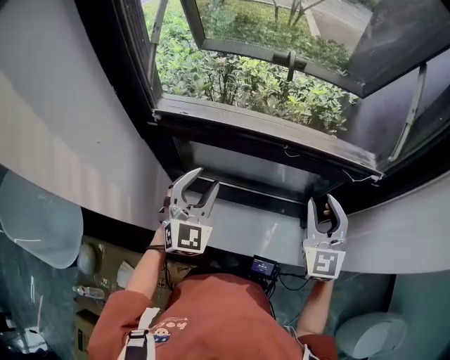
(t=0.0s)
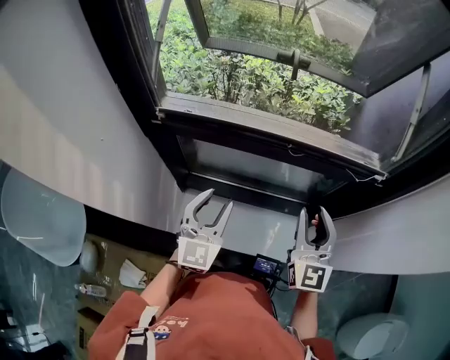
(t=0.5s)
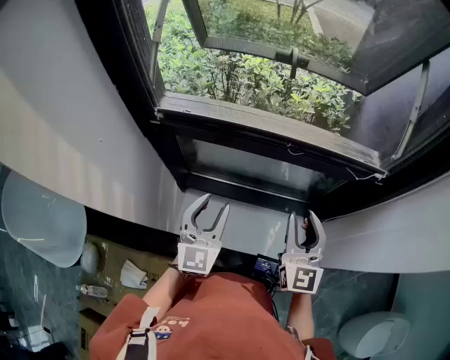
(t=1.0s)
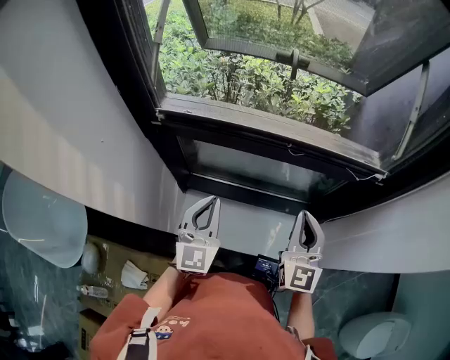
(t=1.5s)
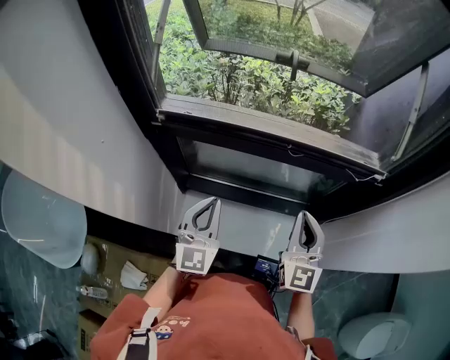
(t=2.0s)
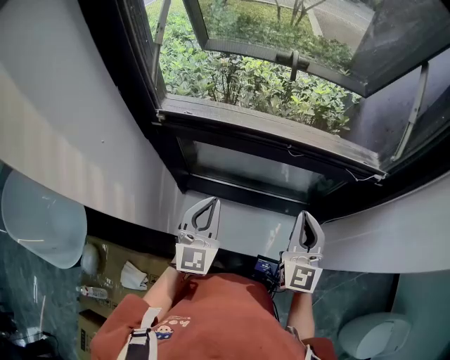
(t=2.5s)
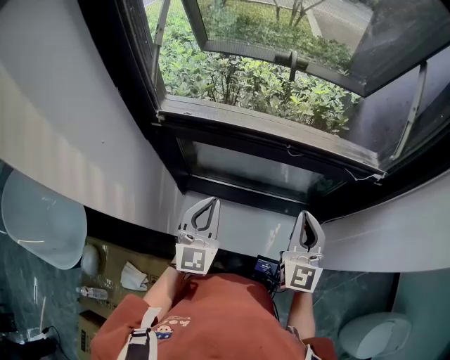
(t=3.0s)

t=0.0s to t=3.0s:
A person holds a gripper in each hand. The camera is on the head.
t=0.0s to t=1.5s: The right gripper ends up some 5 cm from where it was, and closes up. Meanwhile the left gripper changes place by about 5 cm, turns by roughly 20 degrees, and closes up.
t=1.5s to t=3.0s: Both grippers stay about where they are.

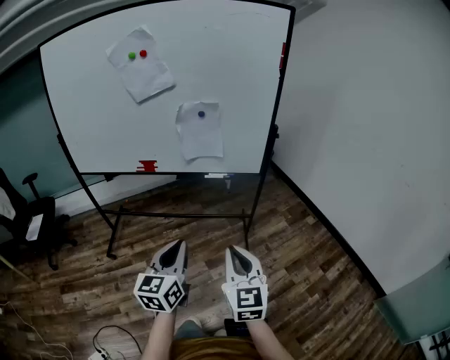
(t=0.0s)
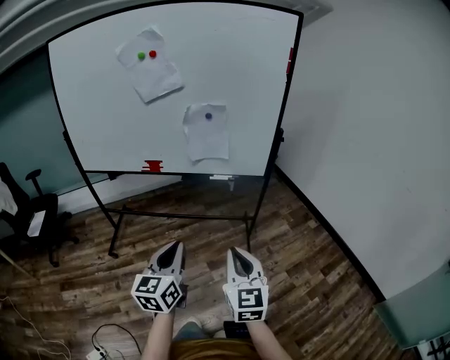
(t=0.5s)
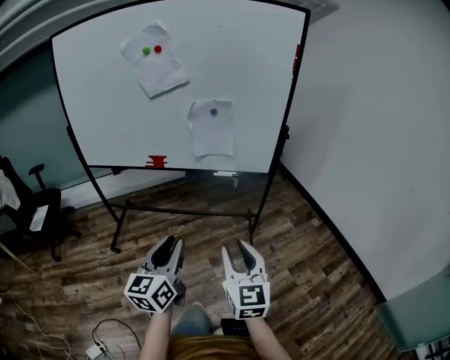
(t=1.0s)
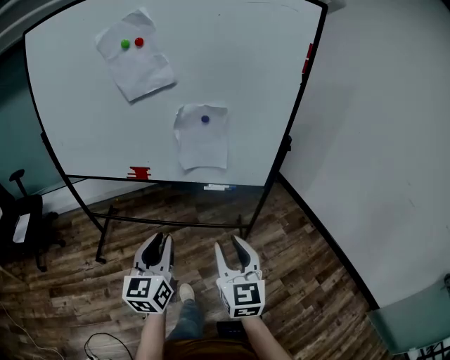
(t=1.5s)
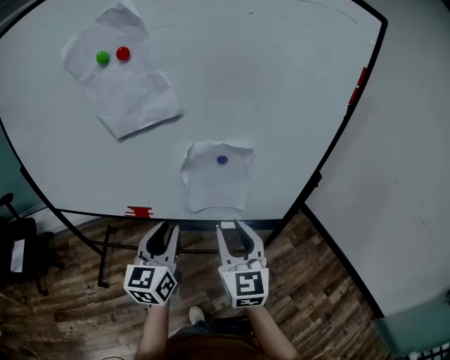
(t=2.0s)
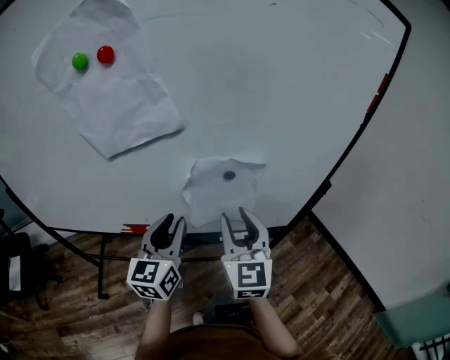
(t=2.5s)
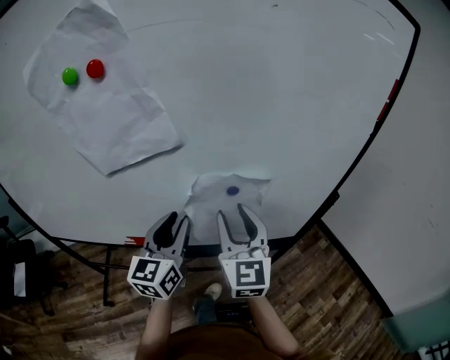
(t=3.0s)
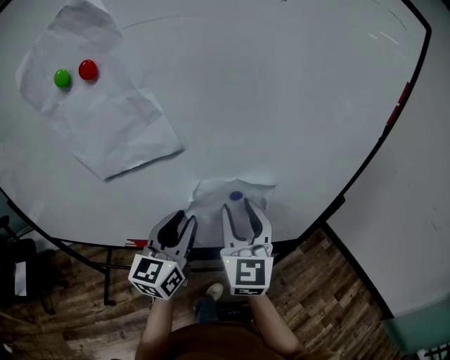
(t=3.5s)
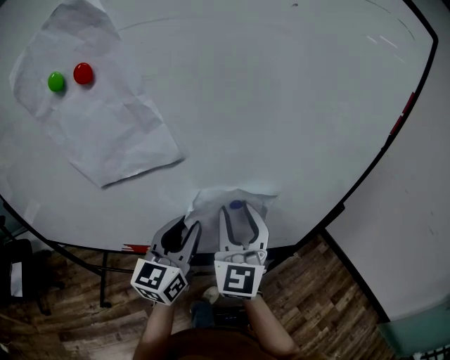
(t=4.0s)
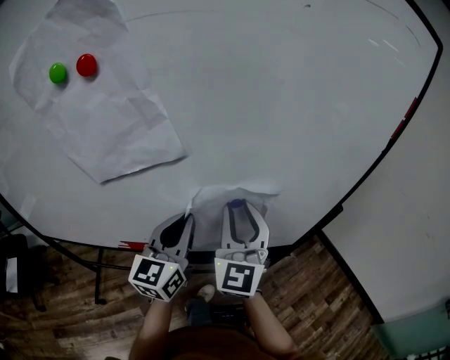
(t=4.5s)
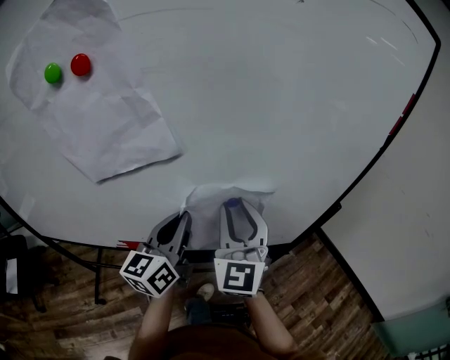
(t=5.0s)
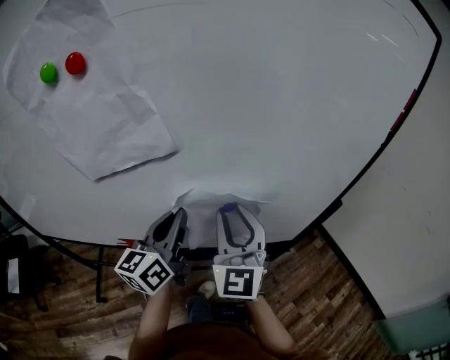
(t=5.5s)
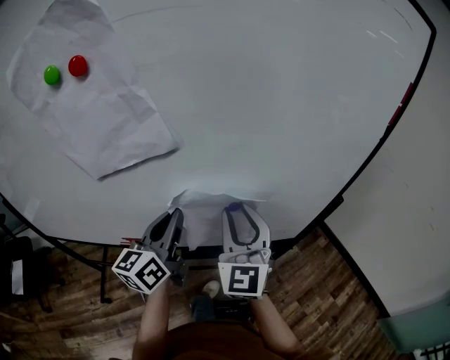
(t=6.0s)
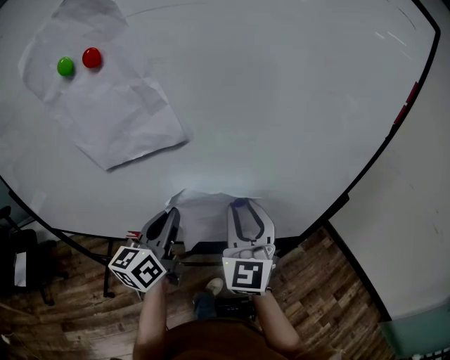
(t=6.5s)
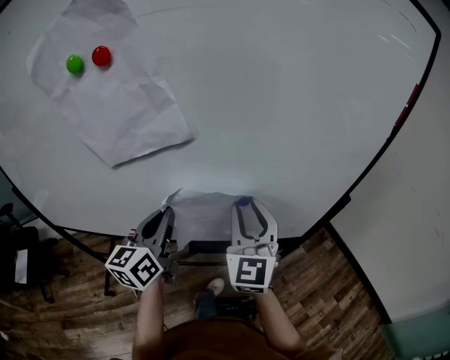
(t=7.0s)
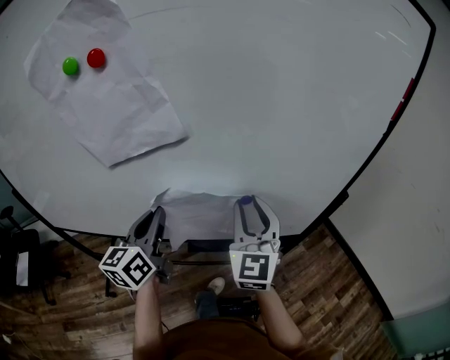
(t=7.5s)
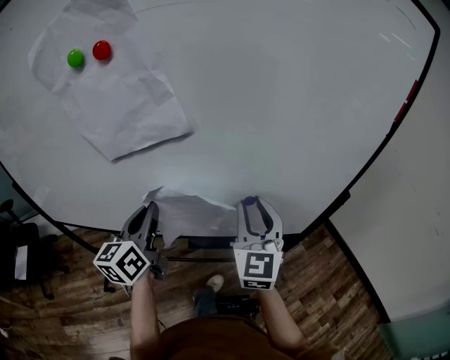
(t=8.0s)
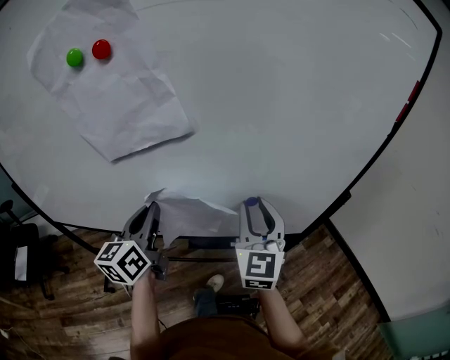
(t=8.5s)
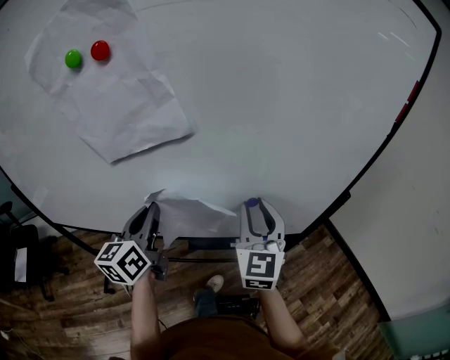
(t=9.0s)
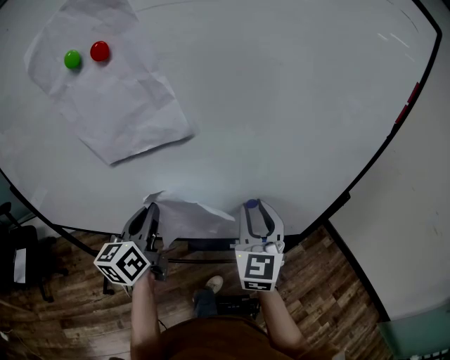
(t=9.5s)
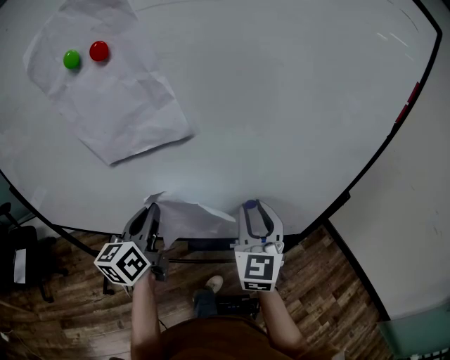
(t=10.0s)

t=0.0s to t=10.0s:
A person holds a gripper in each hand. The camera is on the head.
t=0.0s to t=2.0s: The grippers both shift forward by some 40 cm. The right gripper opens up.
t=2.0s to t=4.0s: Both grippers move forward, some 15 cm. The right gripper swivels about 20 degrees.
t=4.0s to t=6.0s: The left gripper closes up.
t=6.0s to t=8.0s: The left gripper travels to the left by roughly 10 cm.
t=8.0s to t=10.0s: Neither gripper changes place.

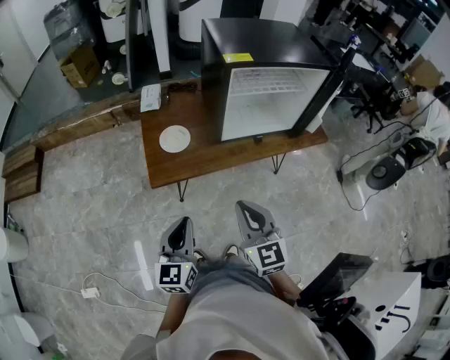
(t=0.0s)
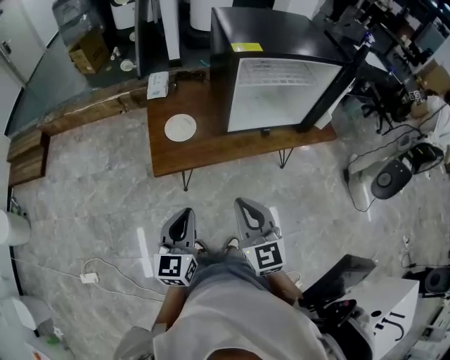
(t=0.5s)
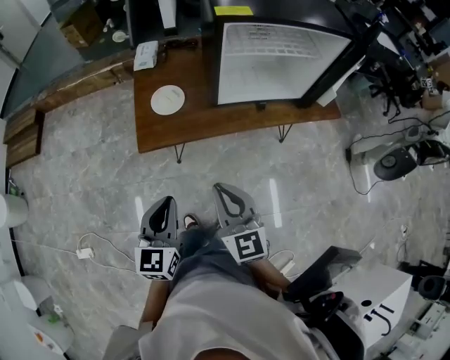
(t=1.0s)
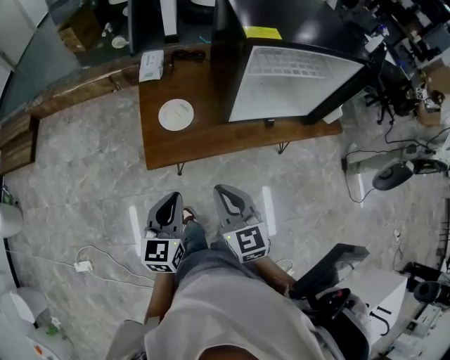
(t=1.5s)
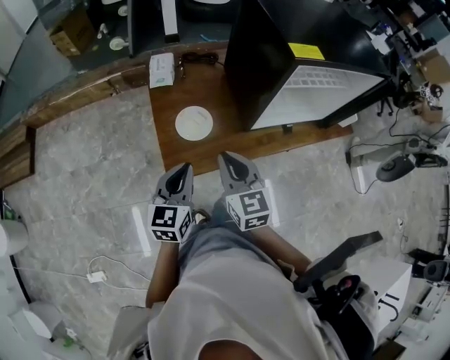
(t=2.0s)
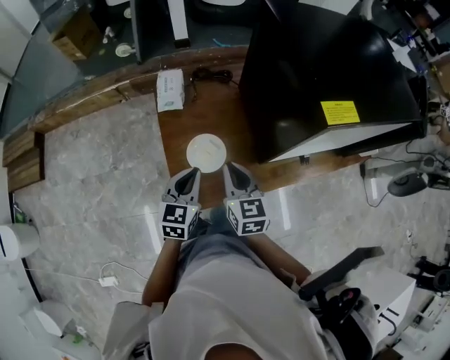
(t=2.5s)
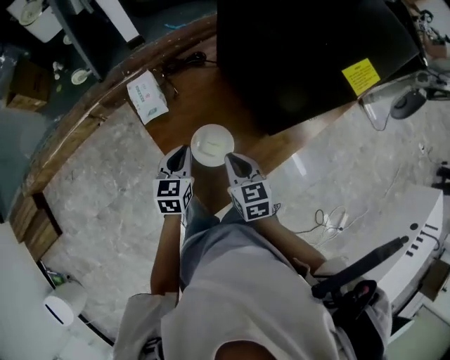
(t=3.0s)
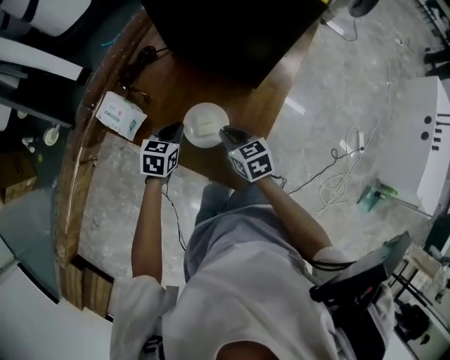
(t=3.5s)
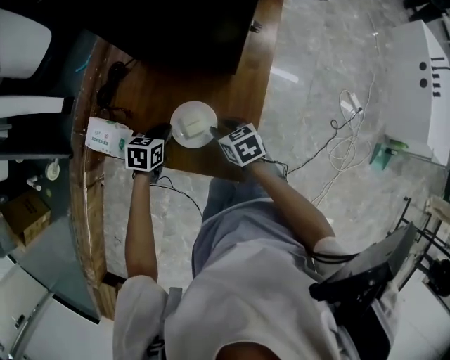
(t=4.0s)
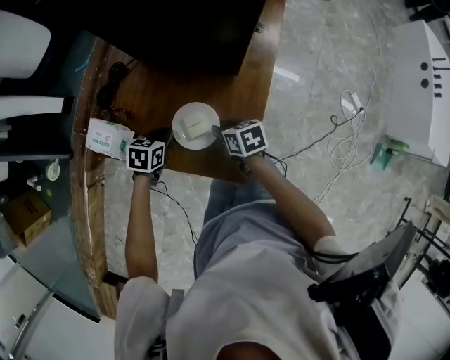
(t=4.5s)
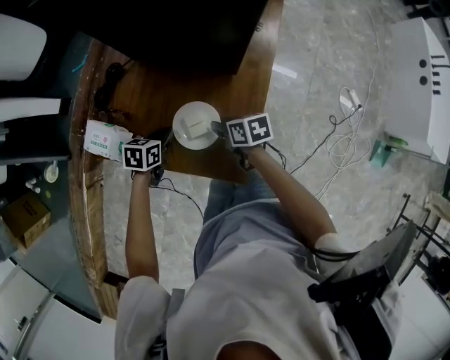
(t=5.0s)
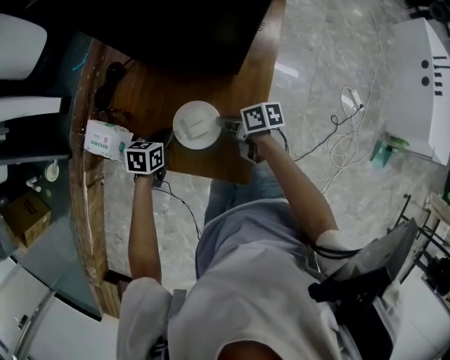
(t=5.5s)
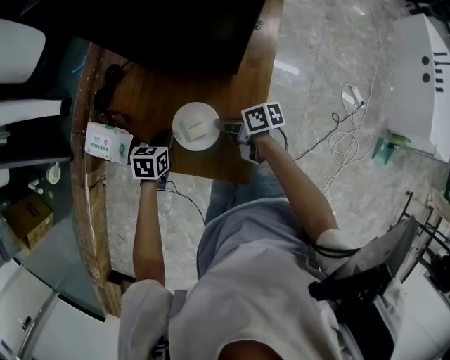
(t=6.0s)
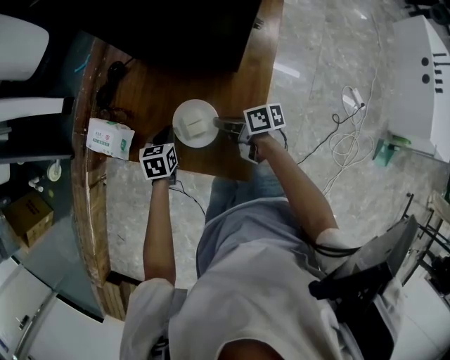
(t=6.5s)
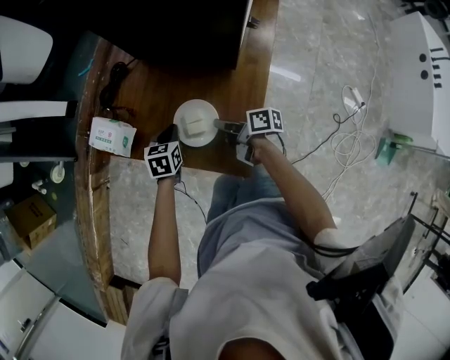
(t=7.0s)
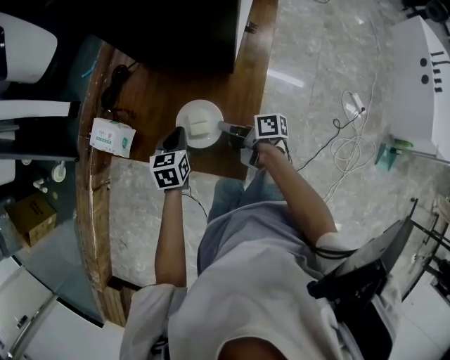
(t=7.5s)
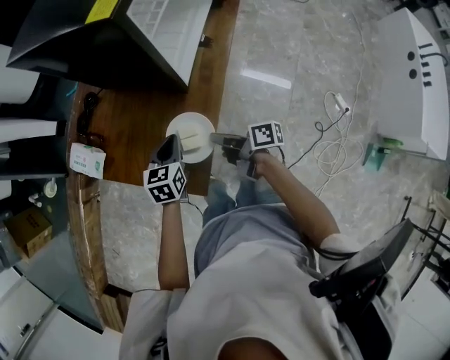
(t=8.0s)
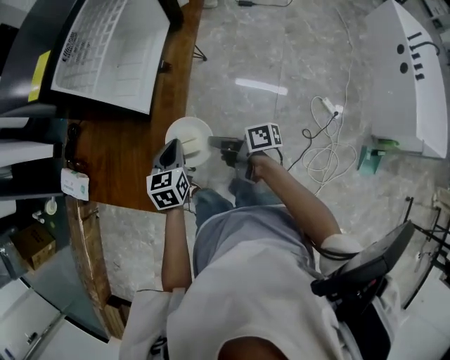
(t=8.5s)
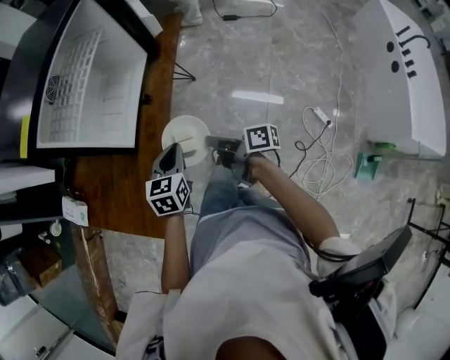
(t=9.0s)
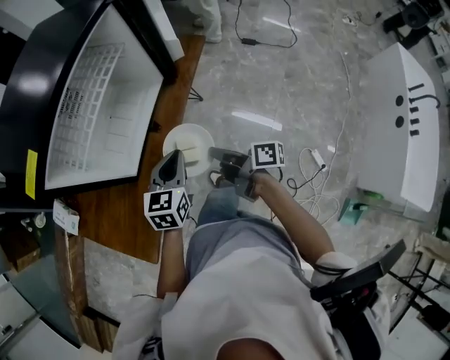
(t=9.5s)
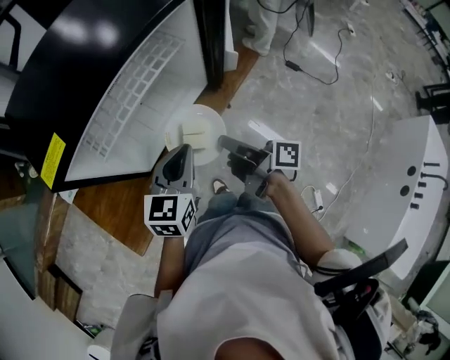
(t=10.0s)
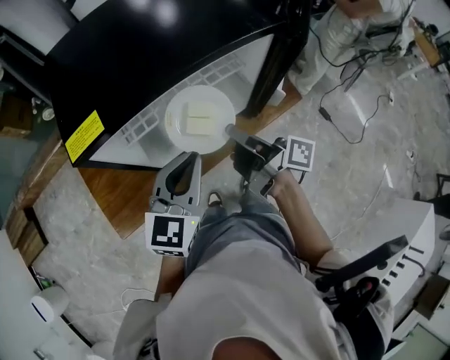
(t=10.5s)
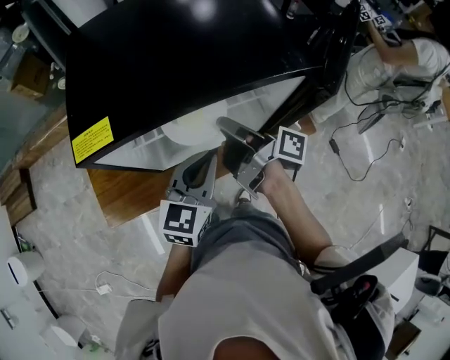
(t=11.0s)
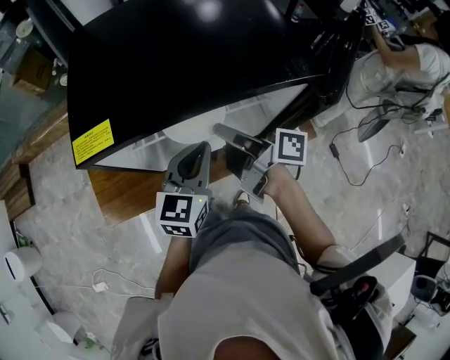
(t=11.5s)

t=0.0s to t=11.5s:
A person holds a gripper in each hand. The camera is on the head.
t=0.0s to t=2.0s: The right gripper heads forward and to the left, covering about 35 cm; the left gripper is displaced forward by some 30 cm.
t=2.0s to t=4.0s: The right gripper travels downward by about 30 cm, tilts its fingers some 30 degrees downward, and opens its fingers. The left gripper shifts by roughly 50 cm, and points its fingers about 40 degrees further downward.
t=4.0s to t=6.0s: The right gripper turns by some 50 degrees, and closes up.
t=6.0s to t=7.5s: The left gripper shifts some 10 cm upward and backward. The right gripper travels backward by roughly 5 cm, and rotates some 20 degrees.
t=7.5s to t=9.5s: Both grippers are carried to the right, roughly 70 cm.
t=9.5s to t=11.5s: The left gripper ends up approximately 35 cm from where it was, and rotates about 40 degrees, while the right gripper shifts by some 50 cm, and swivels approximately 50 degrees.

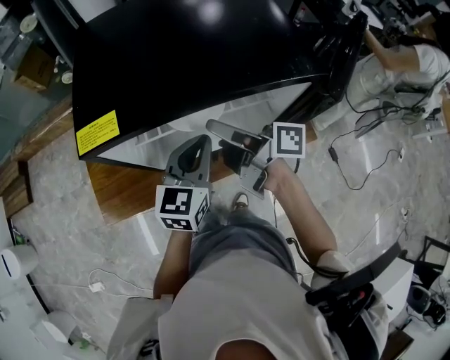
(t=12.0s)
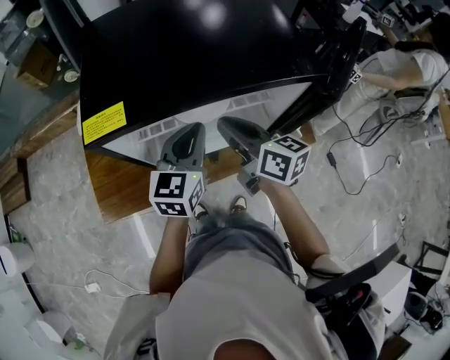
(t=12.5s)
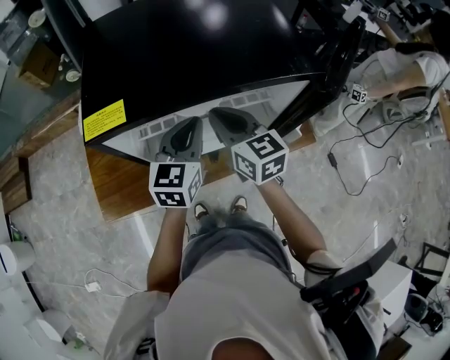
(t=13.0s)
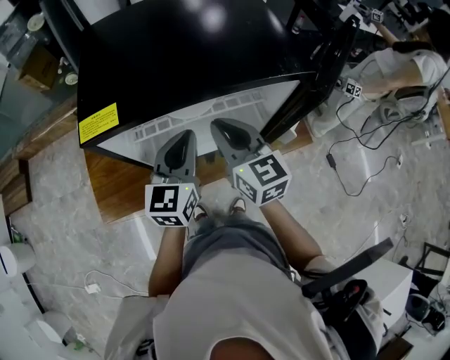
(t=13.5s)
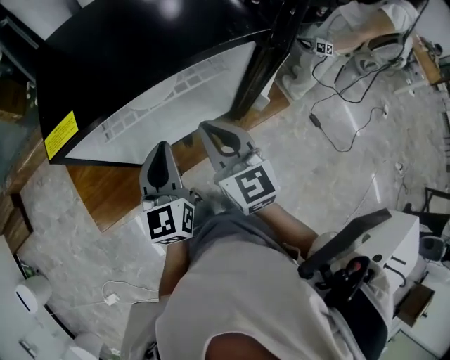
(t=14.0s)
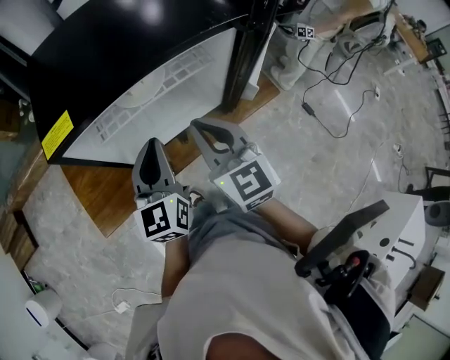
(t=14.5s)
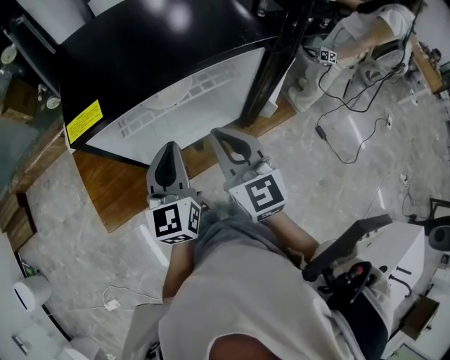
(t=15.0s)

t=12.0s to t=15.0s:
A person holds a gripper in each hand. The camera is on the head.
t=12.0s to t=13.5s: The right gripper rolls counterclockwise, seen from behind, by approximately 60 degrees, and closes its fingers.
t=13.5s to t=15.0s: Both grippers move backward, approximately 10 cm.
